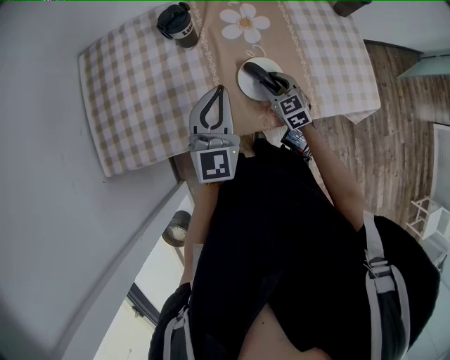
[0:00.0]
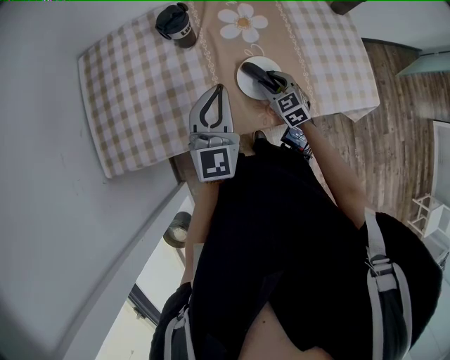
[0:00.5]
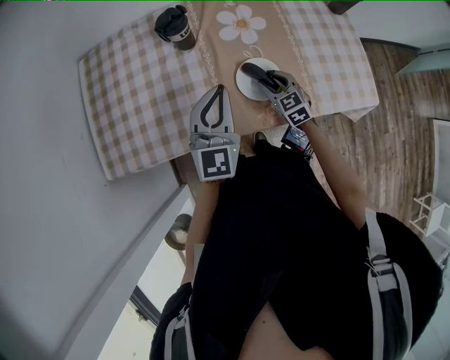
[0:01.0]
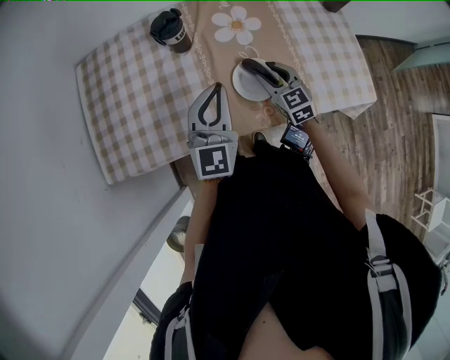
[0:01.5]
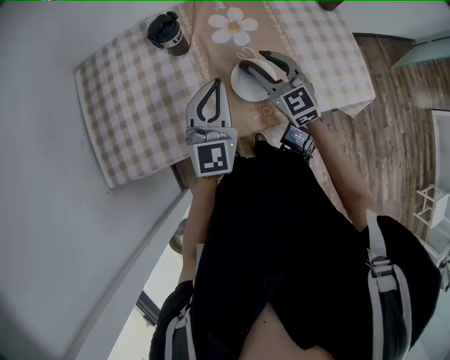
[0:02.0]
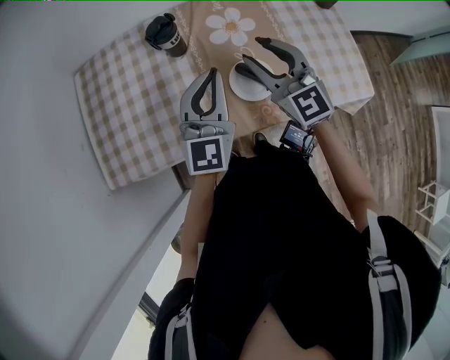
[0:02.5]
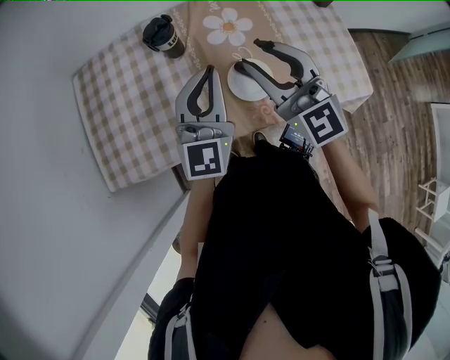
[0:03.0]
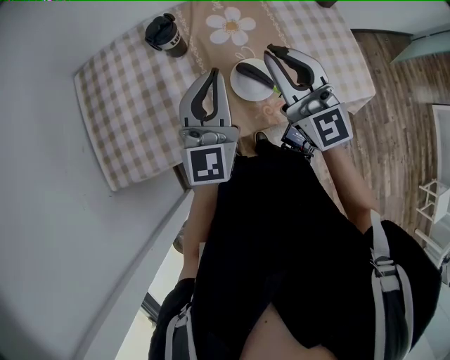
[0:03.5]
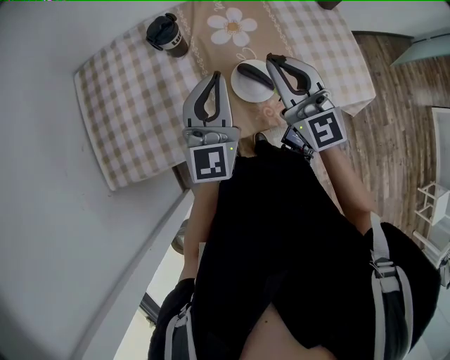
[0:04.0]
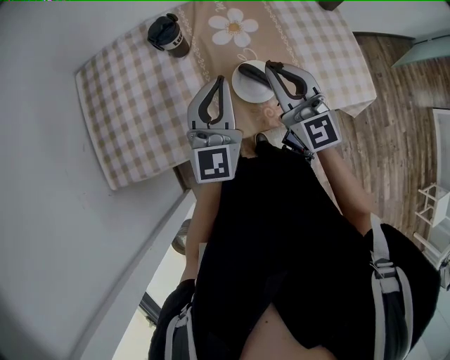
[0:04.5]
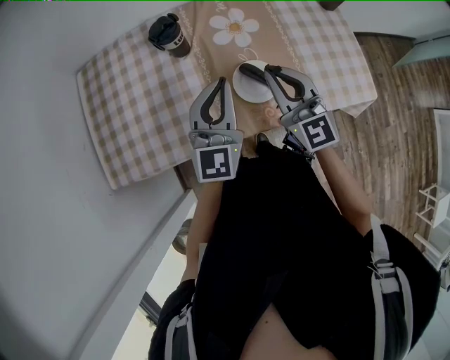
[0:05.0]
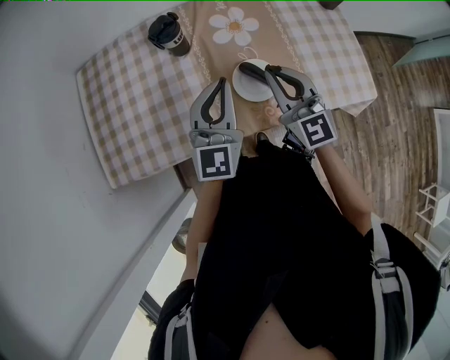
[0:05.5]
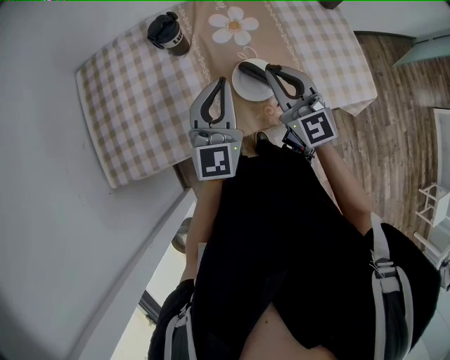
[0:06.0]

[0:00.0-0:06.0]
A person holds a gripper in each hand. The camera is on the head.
0:00.0 to 0:02.0: The right gripper is displaced upward by approximately 15 cm.
0:02.0 to 0:04.0: The right gripper goes about 15 cm upward, and closes up.
0:04.0 to 0:06.0: The right gripper goes some 5 cm downward.

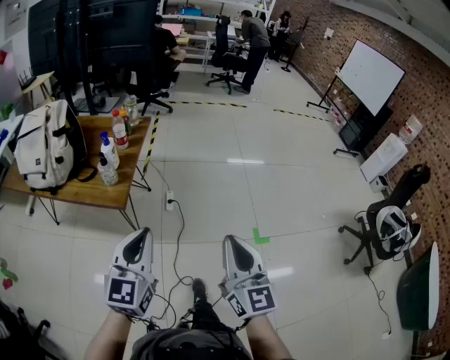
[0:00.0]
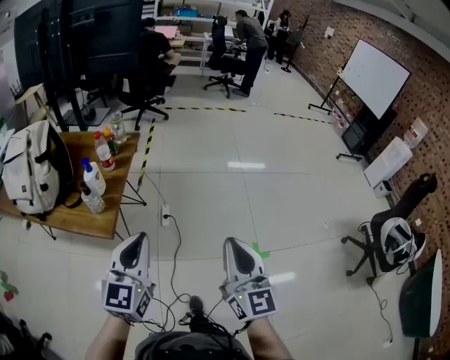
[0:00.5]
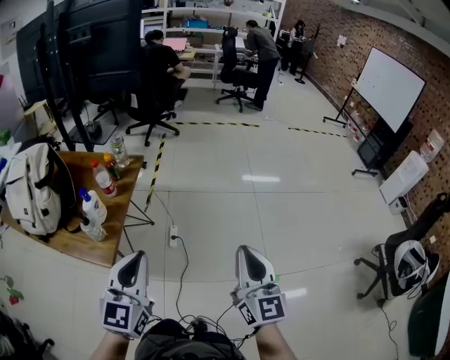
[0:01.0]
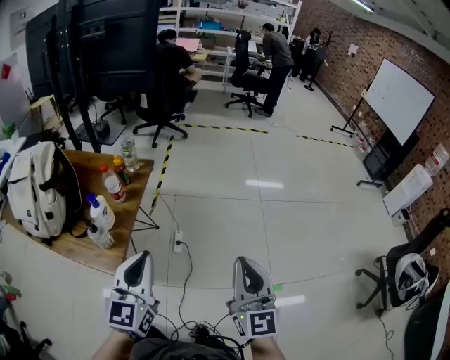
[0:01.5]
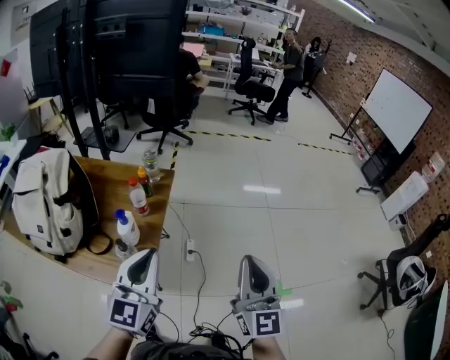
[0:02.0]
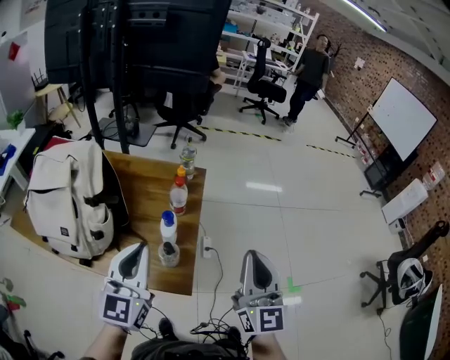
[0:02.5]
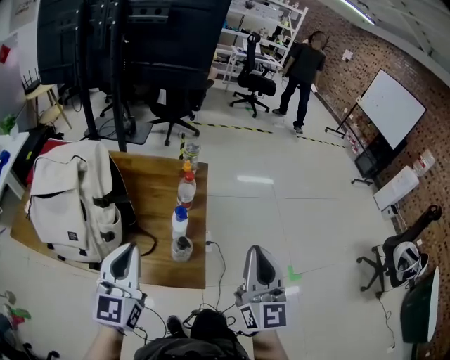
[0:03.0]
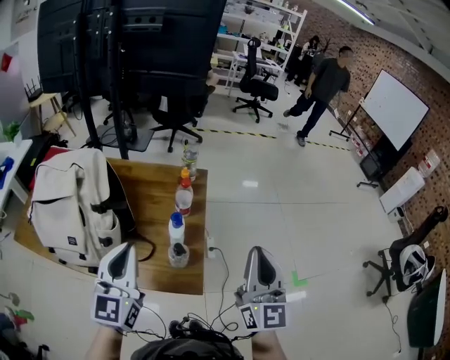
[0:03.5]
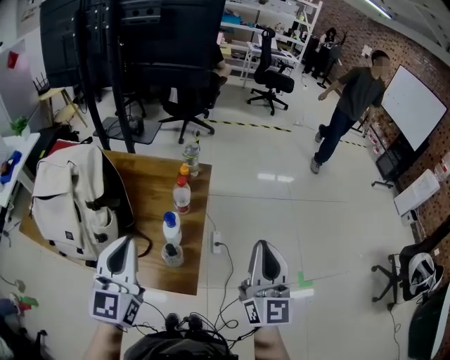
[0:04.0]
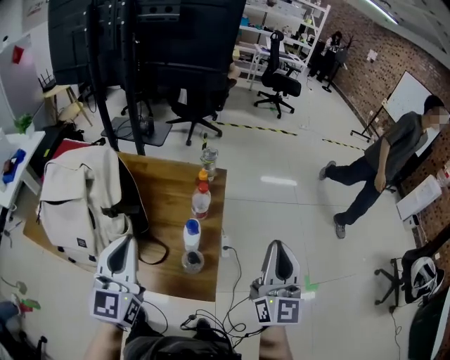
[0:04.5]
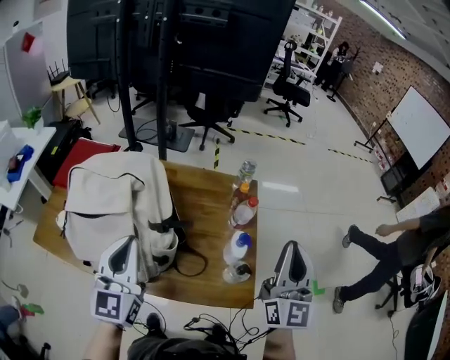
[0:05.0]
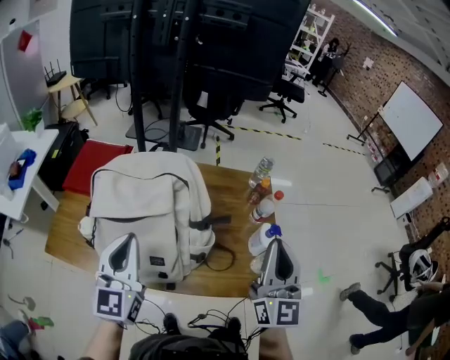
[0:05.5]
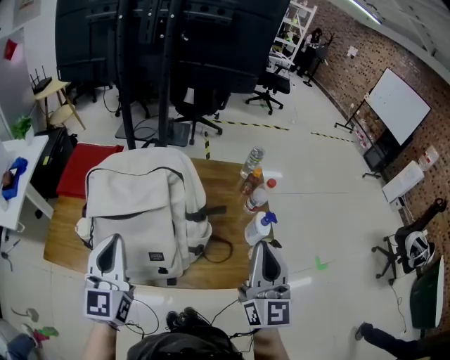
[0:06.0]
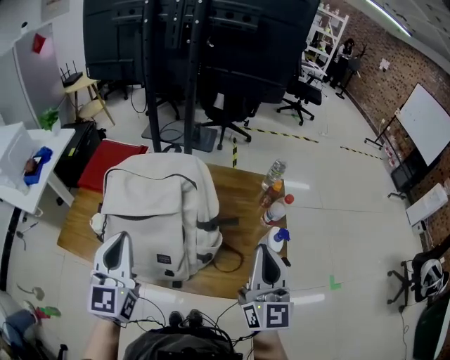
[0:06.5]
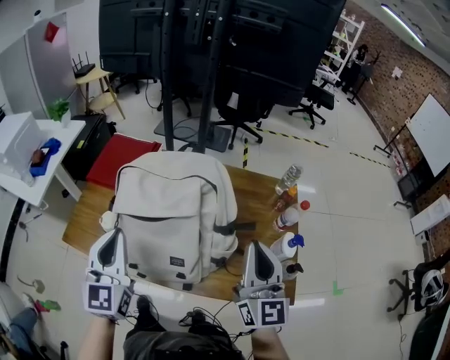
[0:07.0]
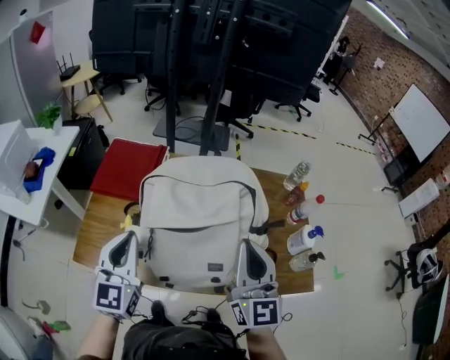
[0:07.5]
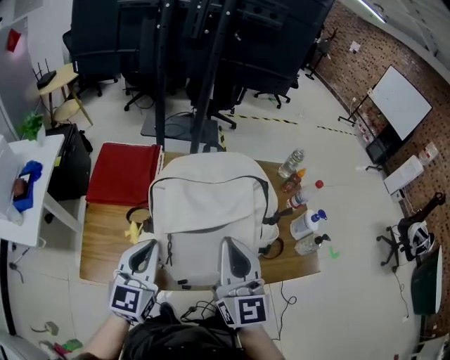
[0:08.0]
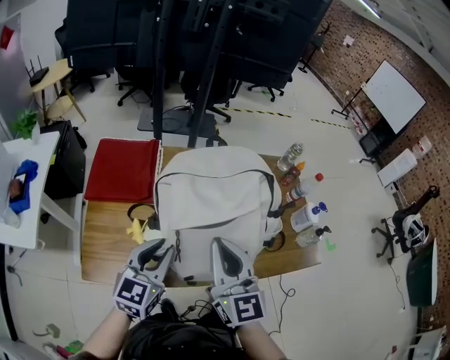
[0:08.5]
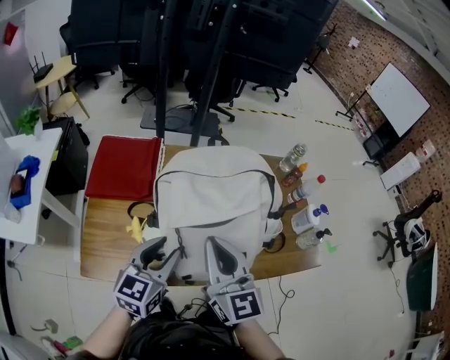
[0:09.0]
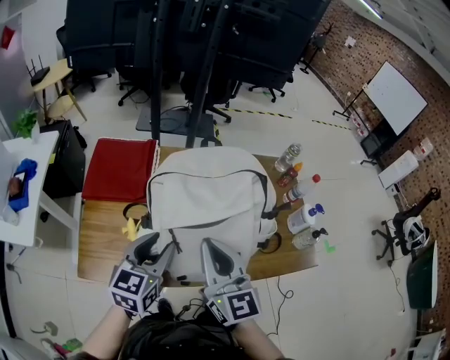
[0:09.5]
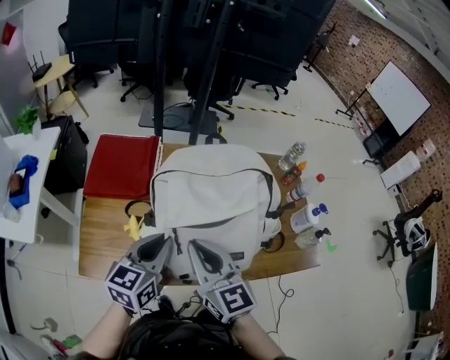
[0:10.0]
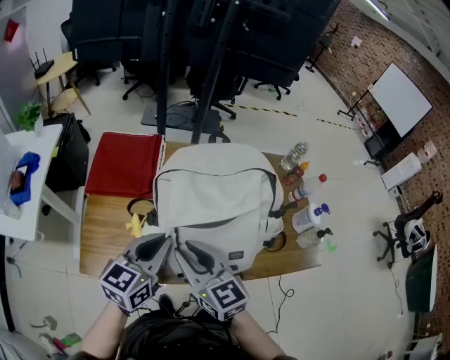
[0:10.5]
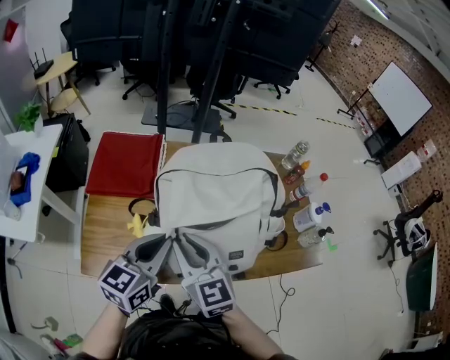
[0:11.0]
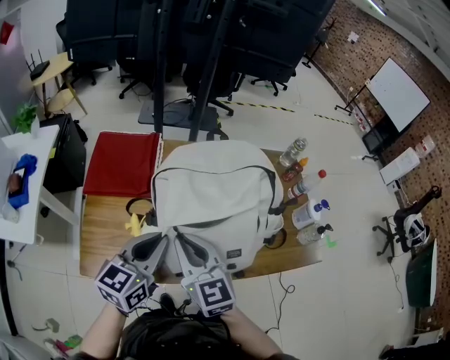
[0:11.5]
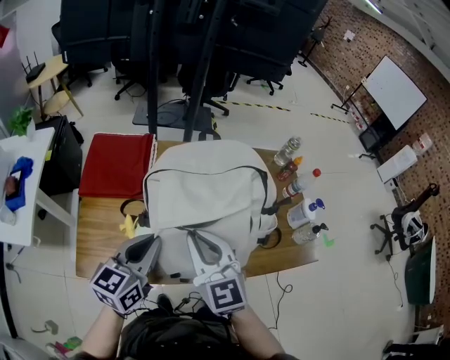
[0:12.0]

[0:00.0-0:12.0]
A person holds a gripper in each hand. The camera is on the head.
0:00.0 to 0:02.0: Both grippers travel together forward, roughly 35 cm.
0:02.0 to 0:04.0: Both grippers travel together to the left, approximately 20 cm.
0:04.0 to 0:06.0: Both grippers are carried to the left, some 50 cm.
0:06.0 to 0:08.0: The right gripper moves to the left, approximately 35 cm. Meanwhile the left gripper heads to the left, covering roughly 20 cm.
0:08.0 to 0:10.0: The left gripper changes its angle by roughly 20 degrees, and opens, then closes again. The right gripper goes roughly 10 cm to the left and downward, and swivels about 20 degrees.
0:10.0 to 0:12.0: The grippers make only small movements.

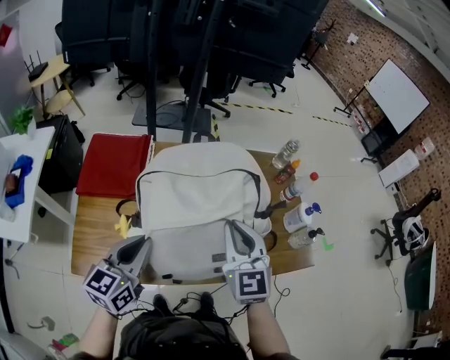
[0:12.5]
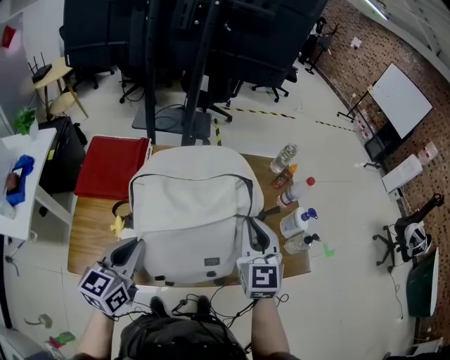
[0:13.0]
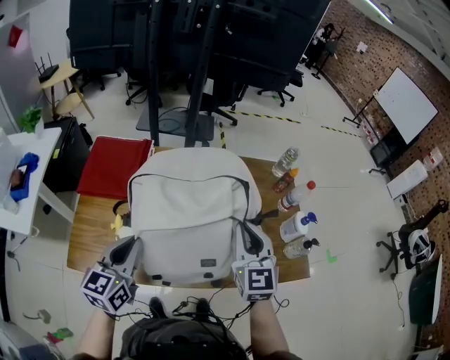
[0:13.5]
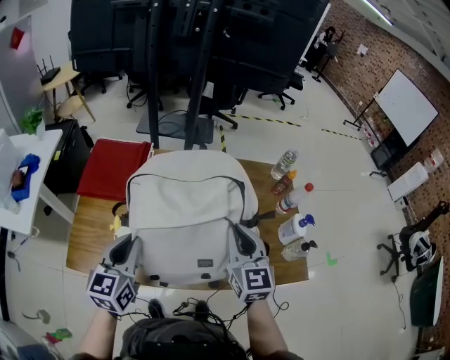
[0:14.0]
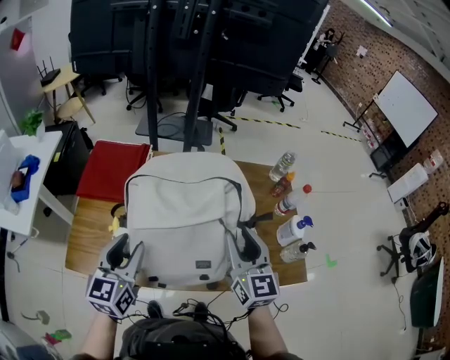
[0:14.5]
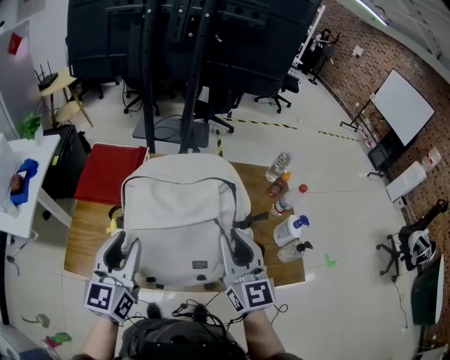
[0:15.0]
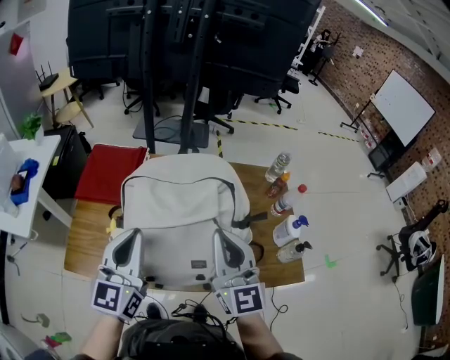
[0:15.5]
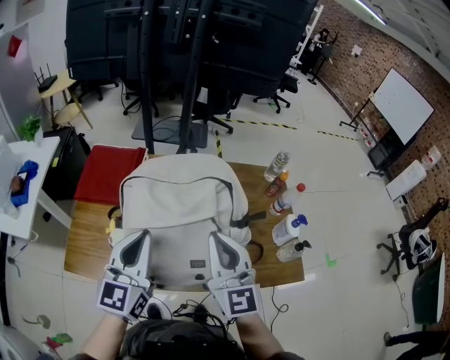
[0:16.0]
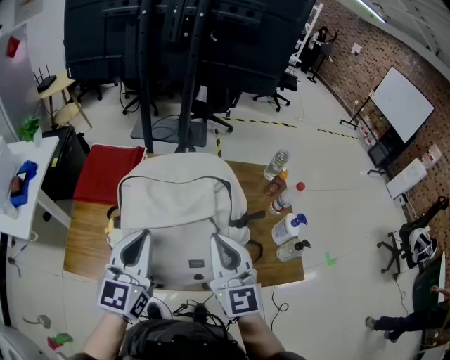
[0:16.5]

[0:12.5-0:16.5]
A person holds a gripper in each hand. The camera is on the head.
0:12.5 to 0:14.5: The right gripper travels to the right by about 10 cm, and opens; the left gripper opens.
0:14.5 to 0:16.5: The right gripper moves about 5 cm, and closes its fingers; the left gripper moves to the right and upward, about 10 cm, and closes its fingers.

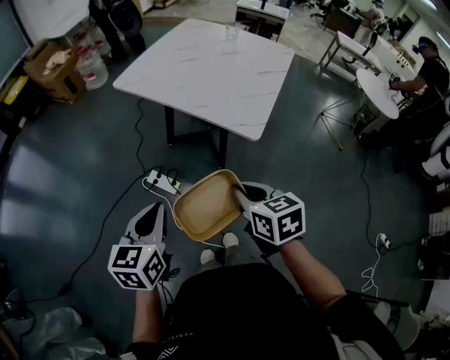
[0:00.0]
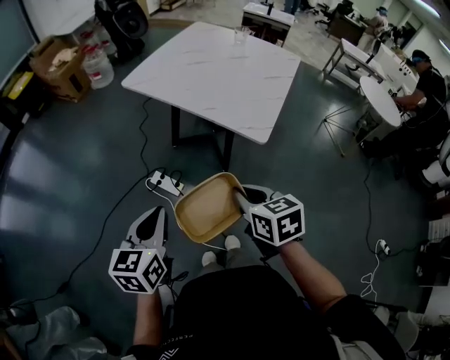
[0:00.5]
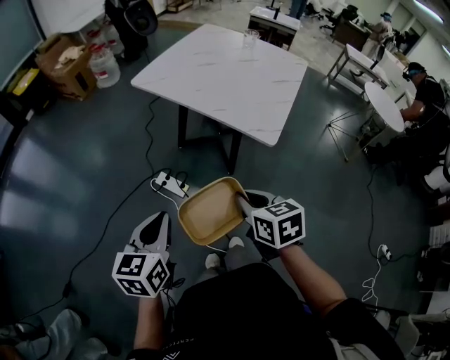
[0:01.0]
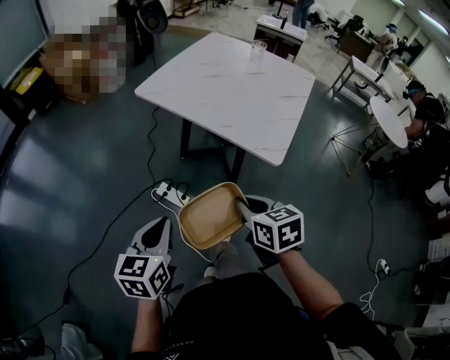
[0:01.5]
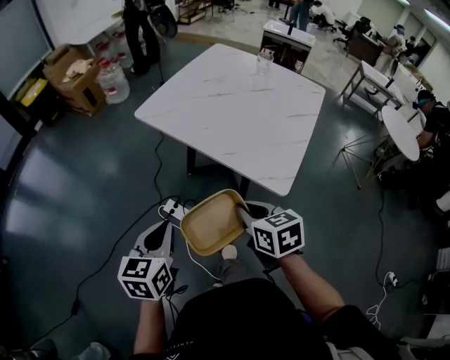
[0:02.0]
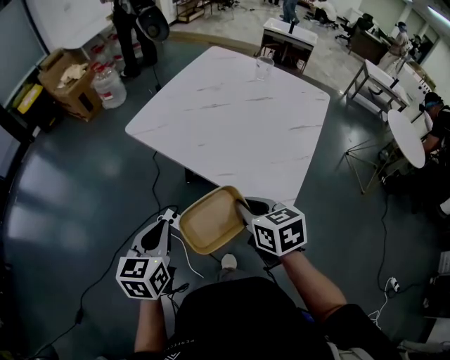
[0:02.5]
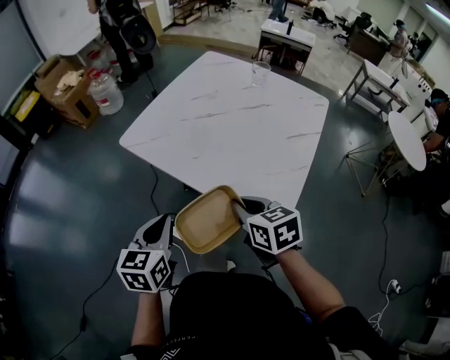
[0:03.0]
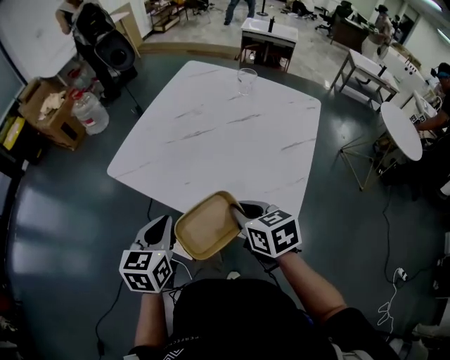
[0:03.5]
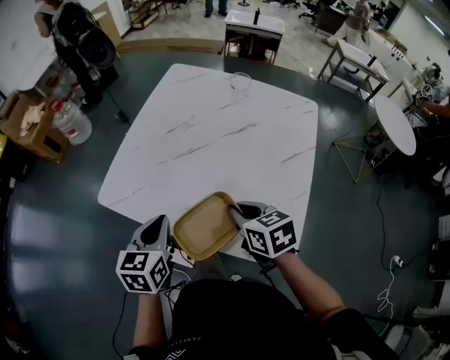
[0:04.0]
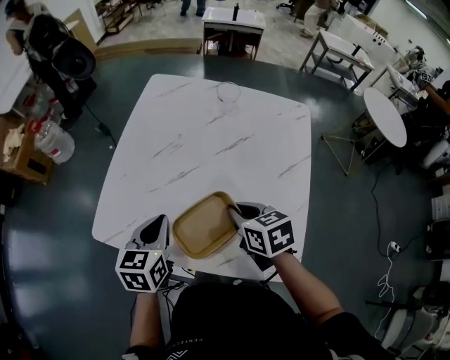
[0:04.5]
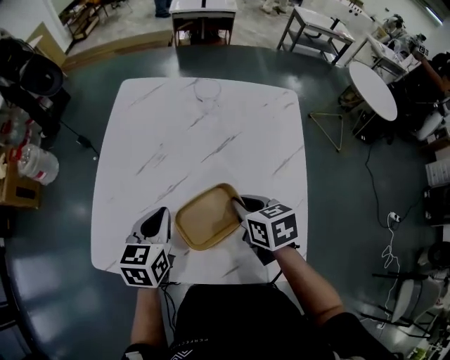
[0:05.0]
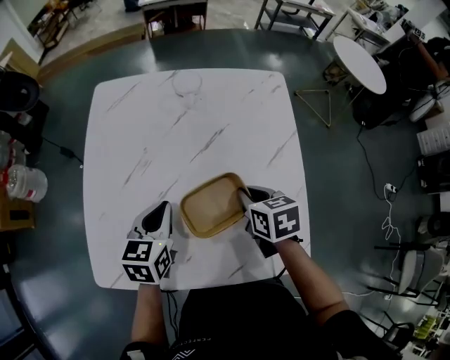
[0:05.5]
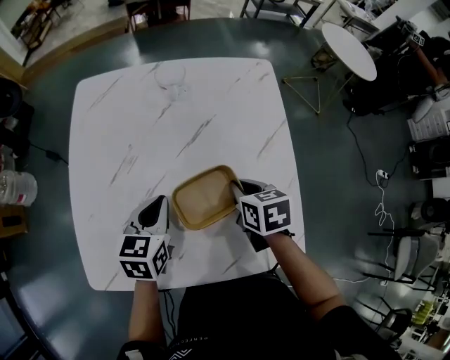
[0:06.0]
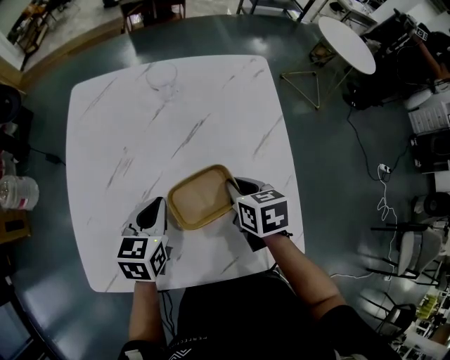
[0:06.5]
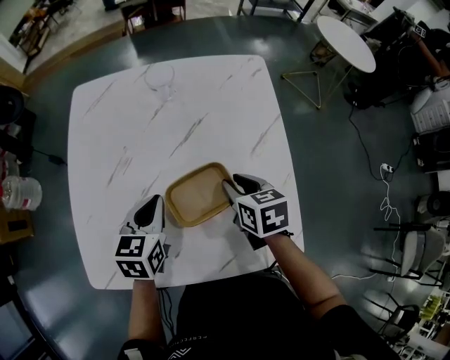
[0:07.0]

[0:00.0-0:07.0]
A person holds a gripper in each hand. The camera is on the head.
0:00.0 to 0:02.0: The grippers both shift forward by about 15 cm.
0:02.0 to 0:03.5: The right gripper is displaced forward by approximately 20 cm; the left gripper moves forward and to the right, roughly 25 cm.
0:03.5 to 0:05.0: Both grippers move forward, some 25 cm. The right gripper turns by approximately 30 degrees. The left gripper turns by some 20 degrees.
0:05.0 to 0:07.0: Both grippers move to the right, approximately 5 cm. The right gripper opens.
